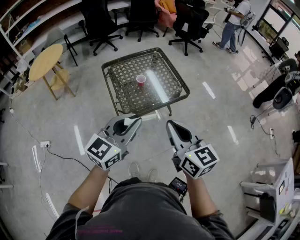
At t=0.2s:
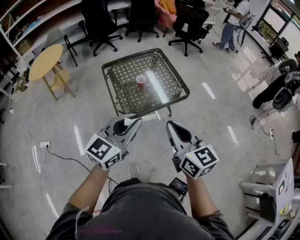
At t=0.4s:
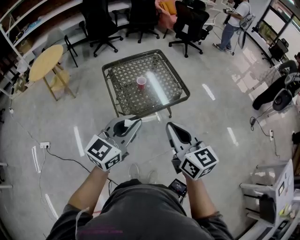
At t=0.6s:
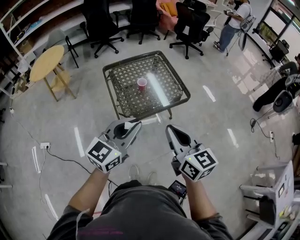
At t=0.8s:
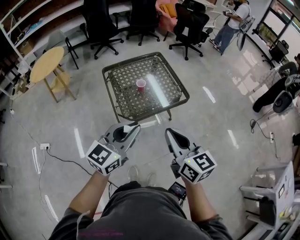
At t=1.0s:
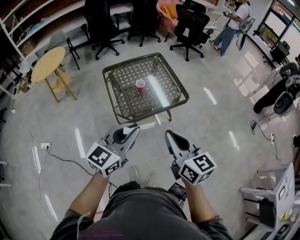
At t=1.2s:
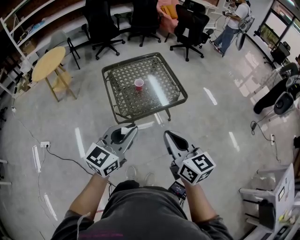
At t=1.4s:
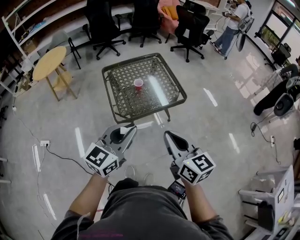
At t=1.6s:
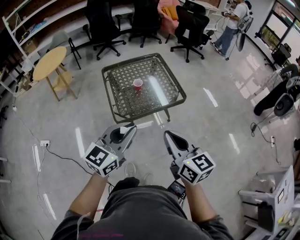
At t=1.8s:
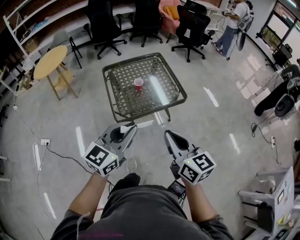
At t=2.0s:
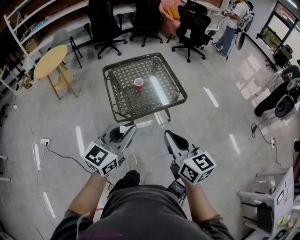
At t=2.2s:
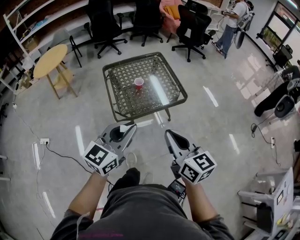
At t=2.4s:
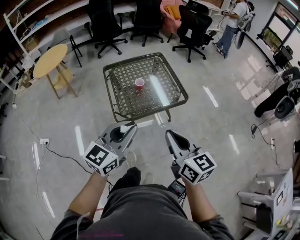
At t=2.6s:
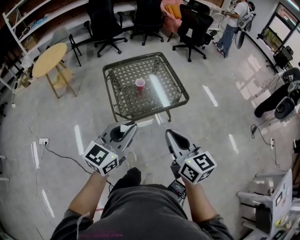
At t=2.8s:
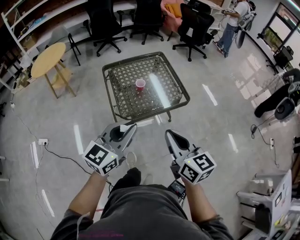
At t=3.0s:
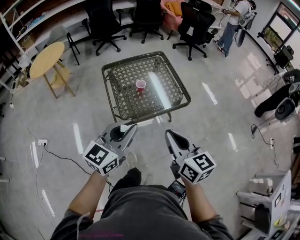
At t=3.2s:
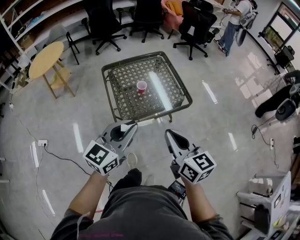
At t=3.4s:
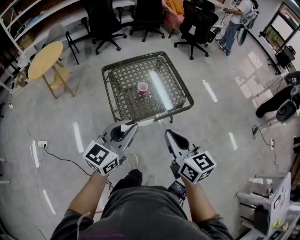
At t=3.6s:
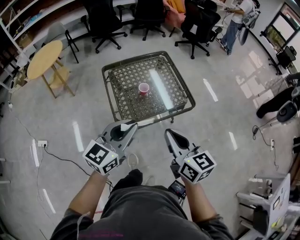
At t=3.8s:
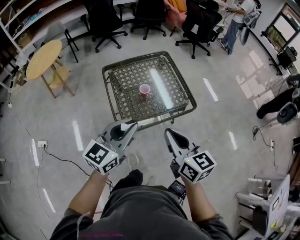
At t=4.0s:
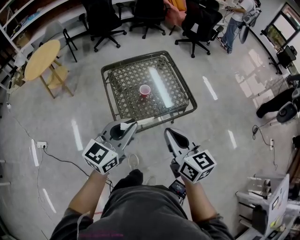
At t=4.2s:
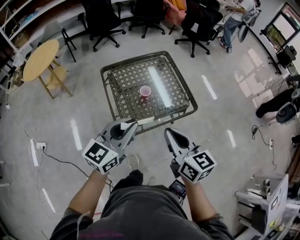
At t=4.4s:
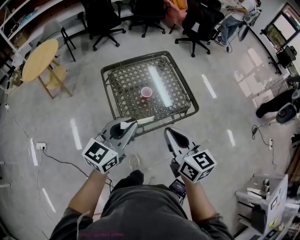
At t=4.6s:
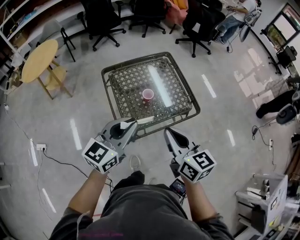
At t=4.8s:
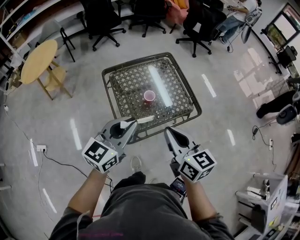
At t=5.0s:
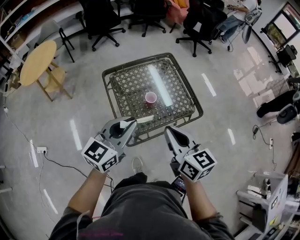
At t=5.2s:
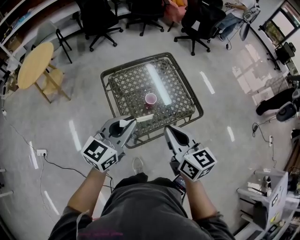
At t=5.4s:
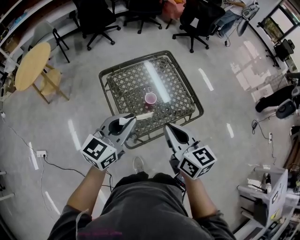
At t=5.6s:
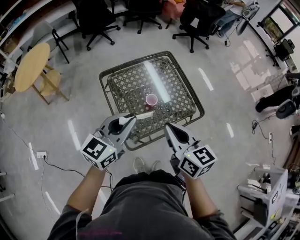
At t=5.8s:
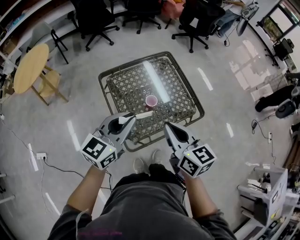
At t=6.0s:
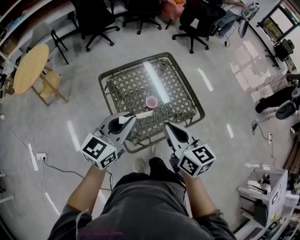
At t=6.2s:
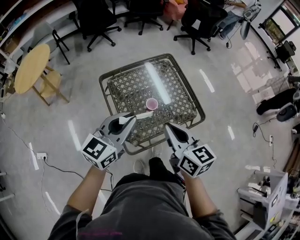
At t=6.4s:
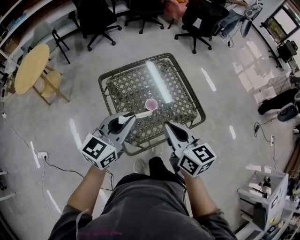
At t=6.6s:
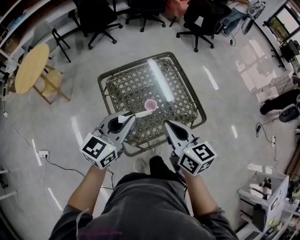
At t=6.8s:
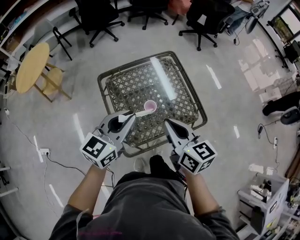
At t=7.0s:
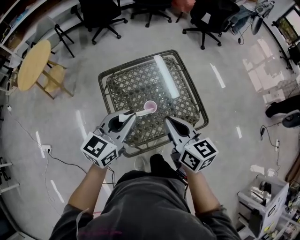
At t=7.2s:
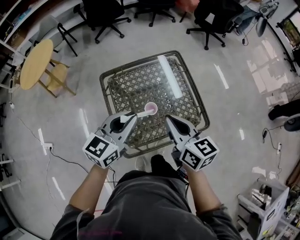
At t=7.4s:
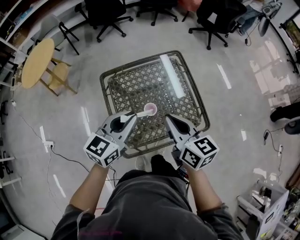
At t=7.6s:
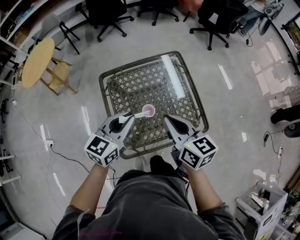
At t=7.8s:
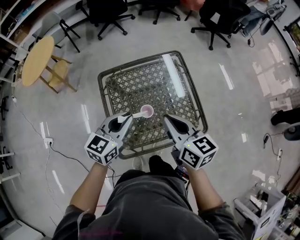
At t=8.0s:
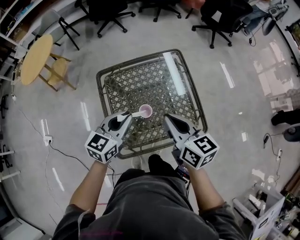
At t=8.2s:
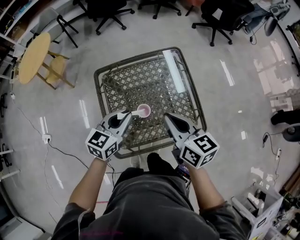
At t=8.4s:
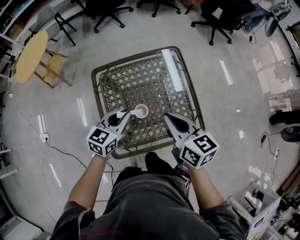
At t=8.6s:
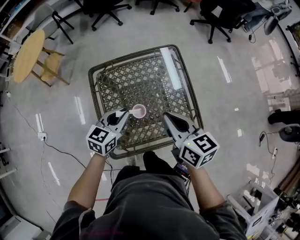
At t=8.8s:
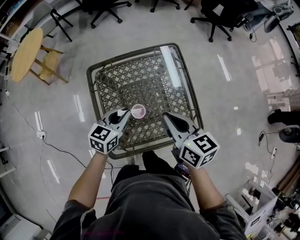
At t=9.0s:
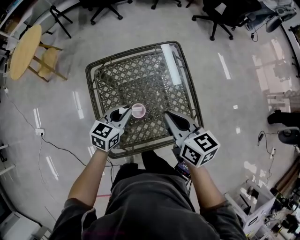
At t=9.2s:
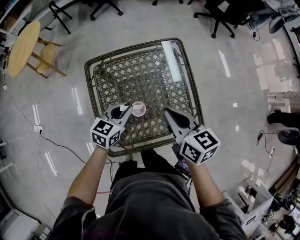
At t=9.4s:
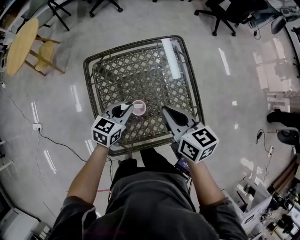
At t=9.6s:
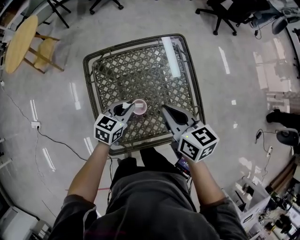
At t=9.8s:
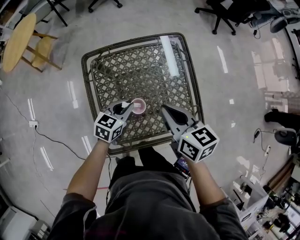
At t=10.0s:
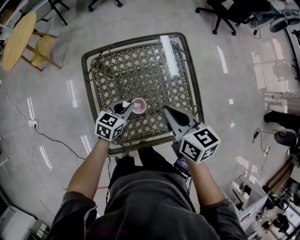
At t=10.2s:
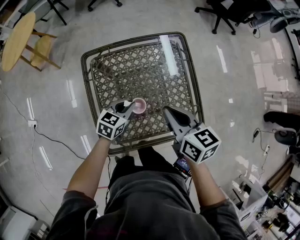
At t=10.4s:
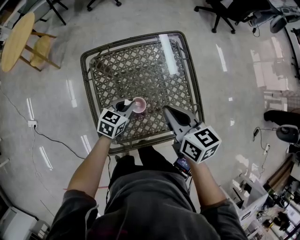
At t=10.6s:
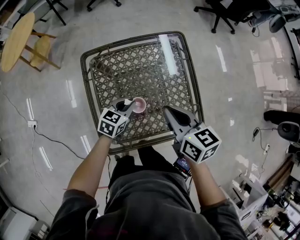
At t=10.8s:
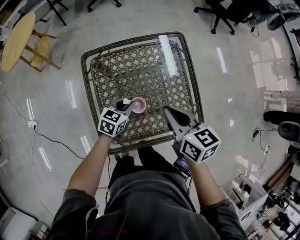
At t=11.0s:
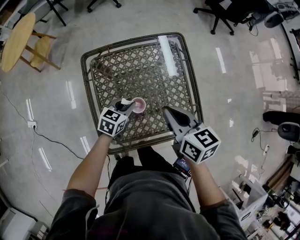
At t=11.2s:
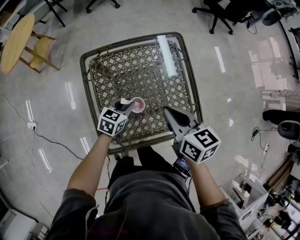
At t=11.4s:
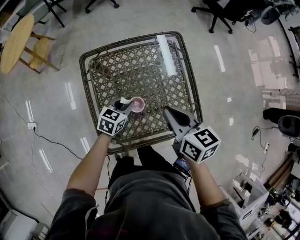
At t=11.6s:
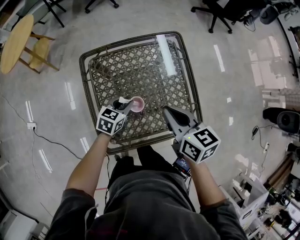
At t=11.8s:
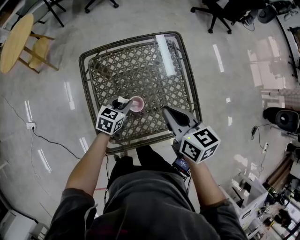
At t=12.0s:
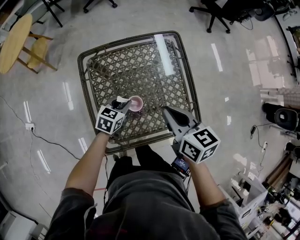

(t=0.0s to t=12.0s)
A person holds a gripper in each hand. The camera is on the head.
t=0.0s - t=1.6s: The right gripper goes some 5 cm to the right.
t=1.6s - t=3.0s: The two grippers go some 5 cm forward.
t=3.0s - t=4.4s: Both grippers travel together forward and to the left, about 15 cm.
t=4.4s - t=6.0s: The two grippers go some 15 cm forward and to the left.
t=6.0s - t=7.6s: The left gripper shifts about 15 cm forward, downward and to the right. Meanwhile the right gripper is displaced forward and to the right by roughly 15 cm.
t=7.6s - t=9.0s: The right gripper is displaced downward and forward by approximately 10 cm; the left gripper is displaced downward and forward by roughly 15 cm.
t=9.0s - t=10.4s: The left gripper is displaced downward by some 10 cm.
t=10.4s - t=12.0s: The grippers move only a little.

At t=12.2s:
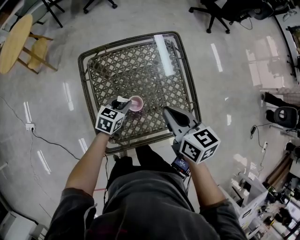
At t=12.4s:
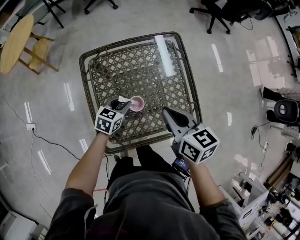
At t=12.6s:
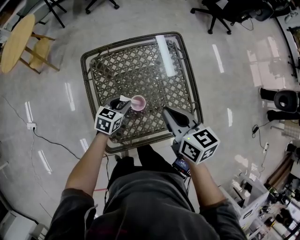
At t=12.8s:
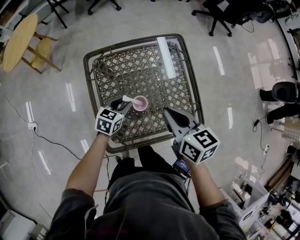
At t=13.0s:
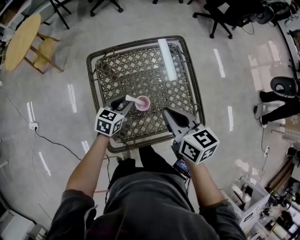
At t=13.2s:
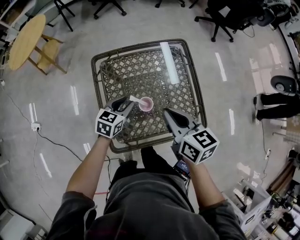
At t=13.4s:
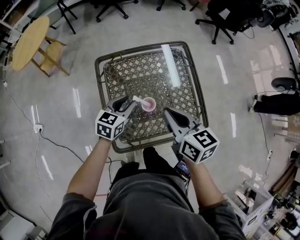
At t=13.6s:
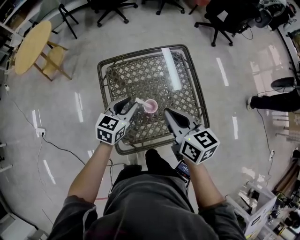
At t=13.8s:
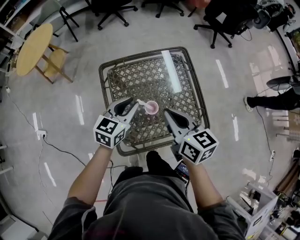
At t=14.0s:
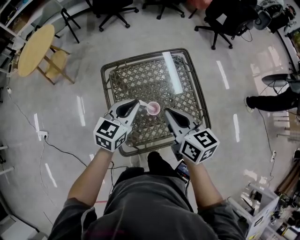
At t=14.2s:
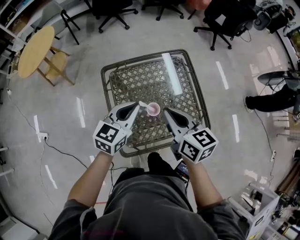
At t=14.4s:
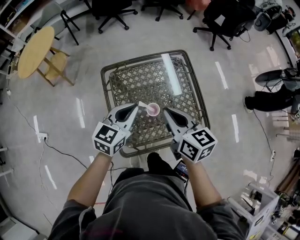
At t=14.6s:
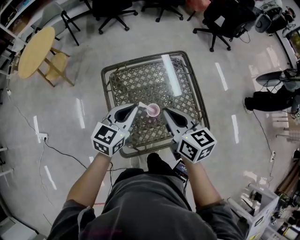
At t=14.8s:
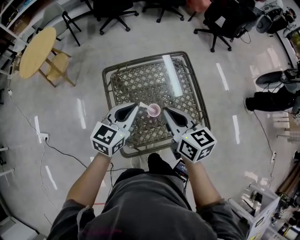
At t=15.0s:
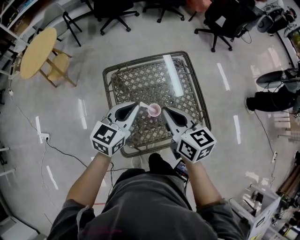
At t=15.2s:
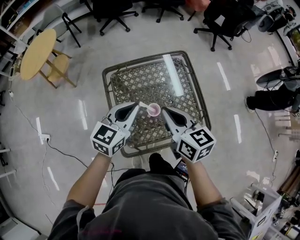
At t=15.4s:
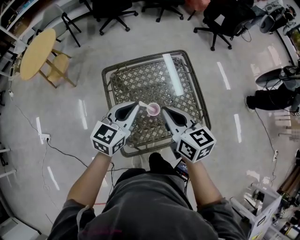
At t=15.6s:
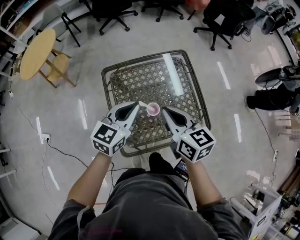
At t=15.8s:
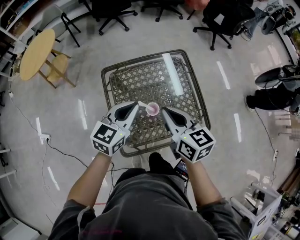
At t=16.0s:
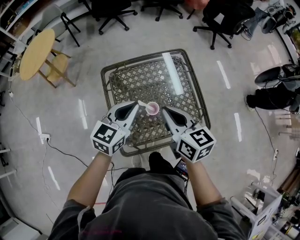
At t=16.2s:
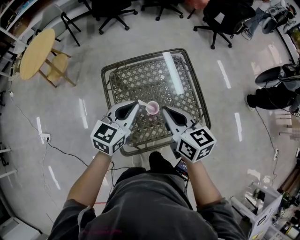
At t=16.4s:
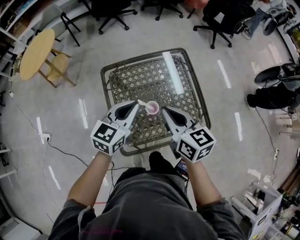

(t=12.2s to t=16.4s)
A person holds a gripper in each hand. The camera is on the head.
t=12.2s - t=13.6s: The left gripper goes about 15 cm upward. Meanwhile the right gripper travels to the left and upward by approximately 10 cm.
t=13.6s - t=15.0s: The left gripper goes approximately 10 cm upward, and closes its fingers.
t=15.0s - t=16.4s: Neither gripper changes place.

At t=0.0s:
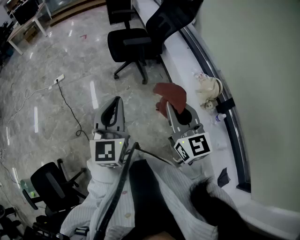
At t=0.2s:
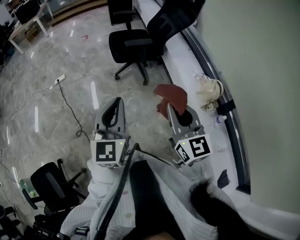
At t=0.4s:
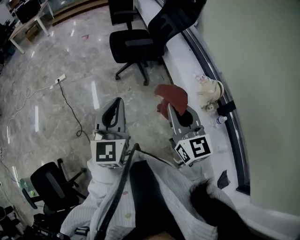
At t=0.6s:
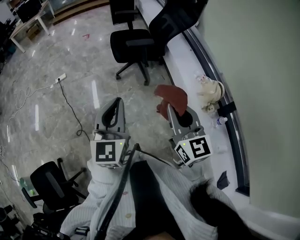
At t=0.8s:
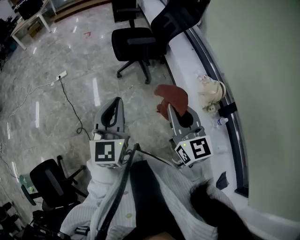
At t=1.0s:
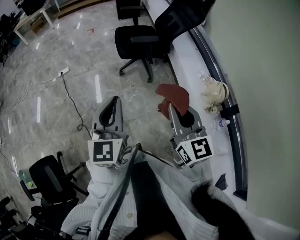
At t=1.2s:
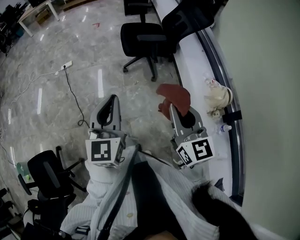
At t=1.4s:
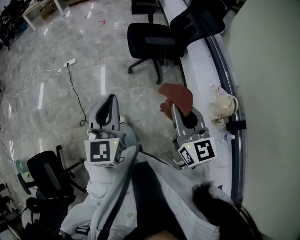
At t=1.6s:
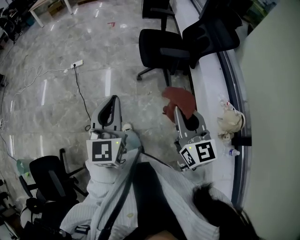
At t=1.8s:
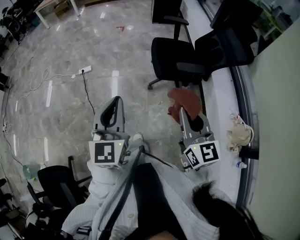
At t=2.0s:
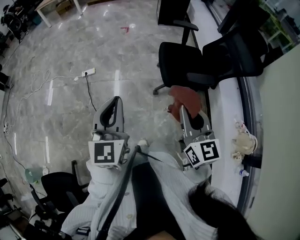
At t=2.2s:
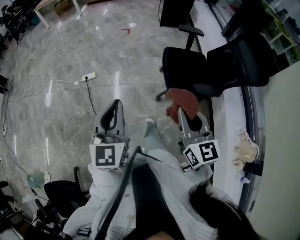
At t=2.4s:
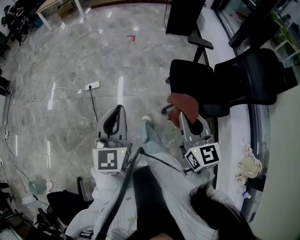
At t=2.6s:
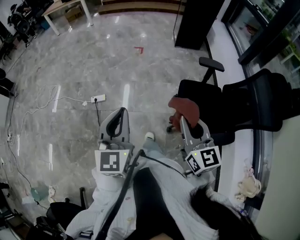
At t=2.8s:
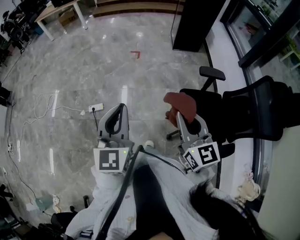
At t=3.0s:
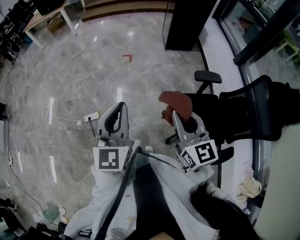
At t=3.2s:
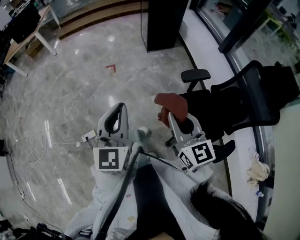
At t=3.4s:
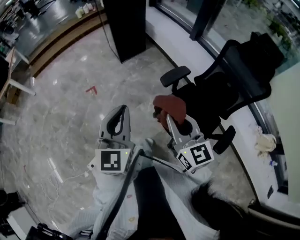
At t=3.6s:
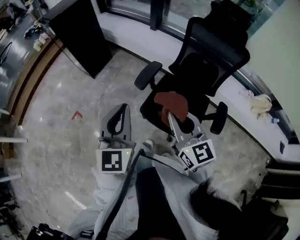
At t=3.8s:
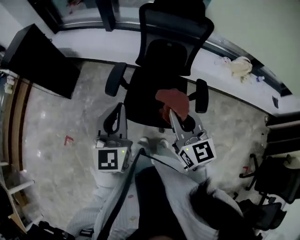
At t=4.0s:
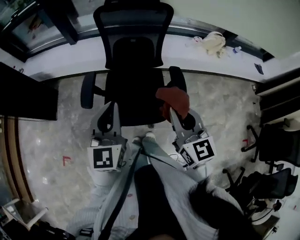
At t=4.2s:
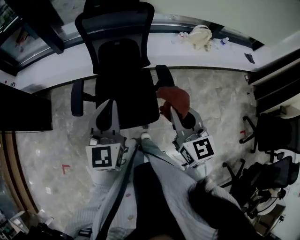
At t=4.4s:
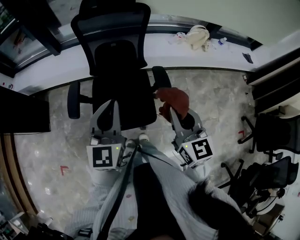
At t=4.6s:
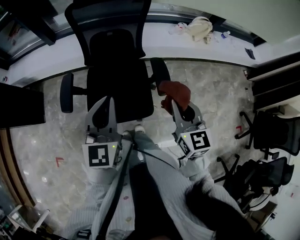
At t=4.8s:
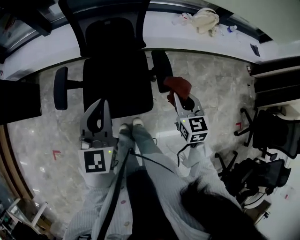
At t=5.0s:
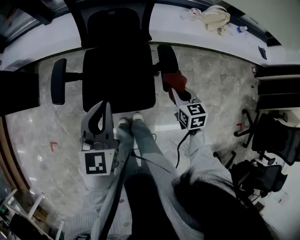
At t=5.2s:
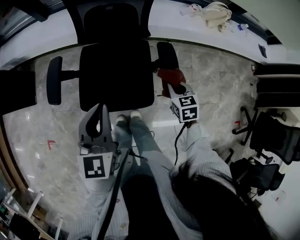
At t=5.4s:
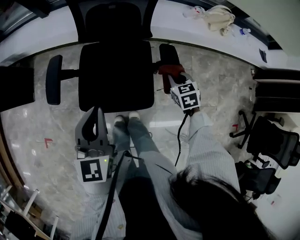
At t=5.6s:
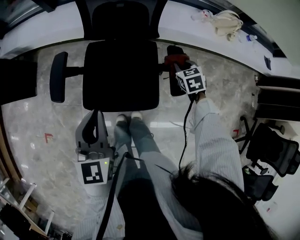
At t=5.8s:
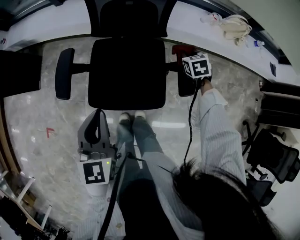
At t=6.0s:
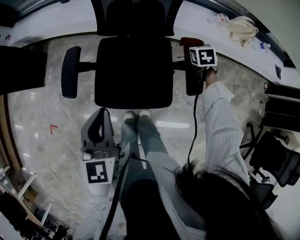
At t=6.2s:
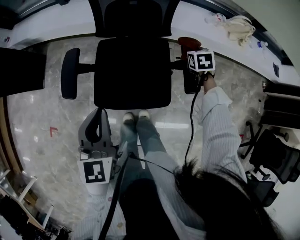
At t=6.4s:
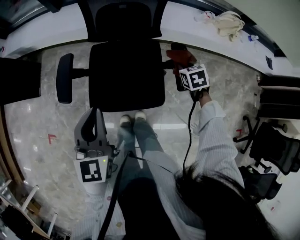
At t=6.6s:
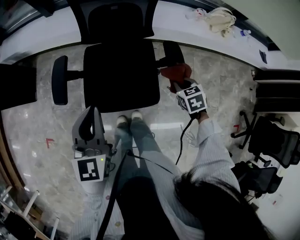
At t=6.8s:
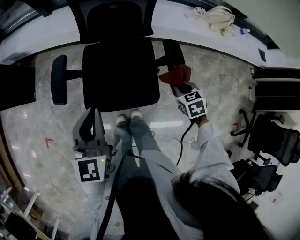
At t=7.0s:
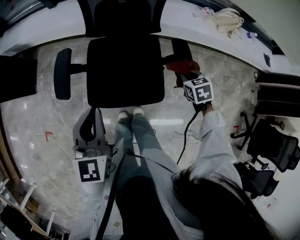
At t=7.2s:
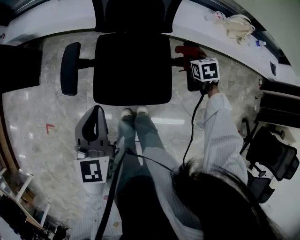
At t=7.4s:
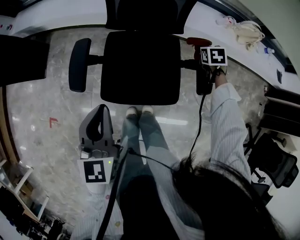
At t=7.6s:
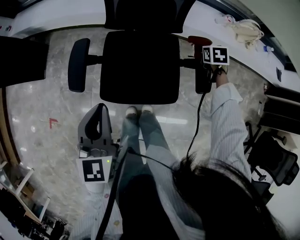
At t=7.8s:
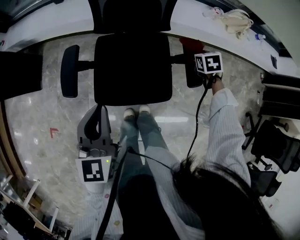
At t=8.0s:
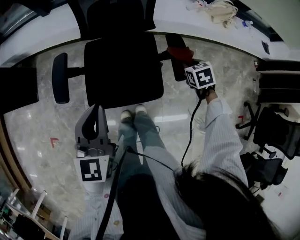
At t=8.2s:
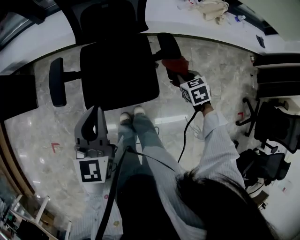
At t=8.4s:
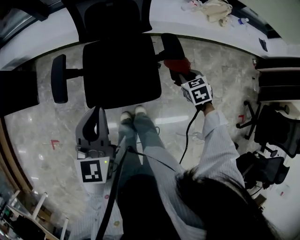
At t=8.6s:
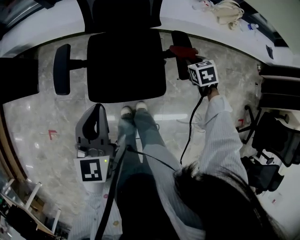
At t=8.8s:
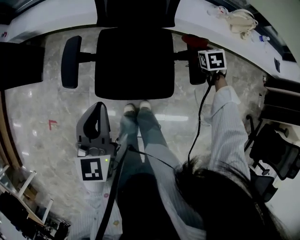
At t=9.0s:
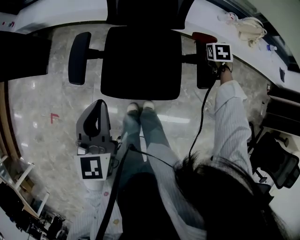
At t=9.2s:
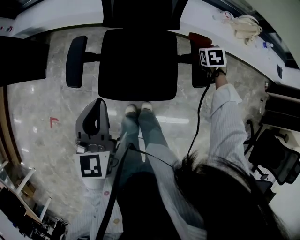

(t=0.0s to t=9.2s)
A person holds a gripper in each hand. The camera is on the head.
t=0.0s - t=1.6s: The two grippers go approximately 25 cm forward and to the left.
t=1.6s - t=3.0s: The two grippers travel together, forward, some 80 cm.
t=3.0s - t=4.6s: The right gripper ends up some 40 cm from where it was, and rotates approximately 100 degrees; the left gripper shifts by about 50 cm, and turns by roughly 90 degrees.
t=4.6s - t=6.2s: The left gripper heads downward and to the left, covering about 15 cm, and changes its angle by roughly 20 degrees. The right gripper shifts about 40 cm downward and forward, and points its fingers some 40 degrees further downward.
t=6.2s - t=7.6s: The right gripper goes backward and returns, some 20 cm each way.
t=7.6s - t=9.2s: The right gripper moves some 20 cm backward and comes back. Meanwhile the left gripper moves roughly 10 cm to the right and comes back.
